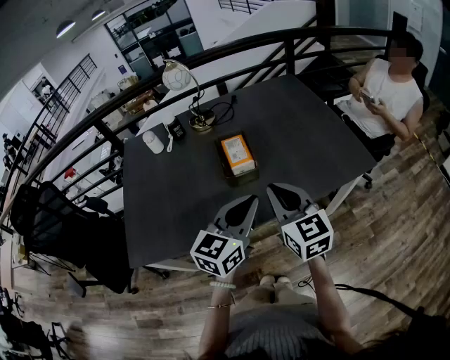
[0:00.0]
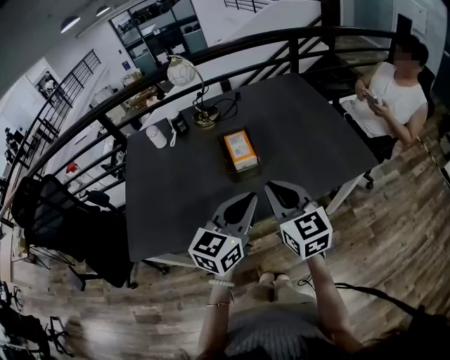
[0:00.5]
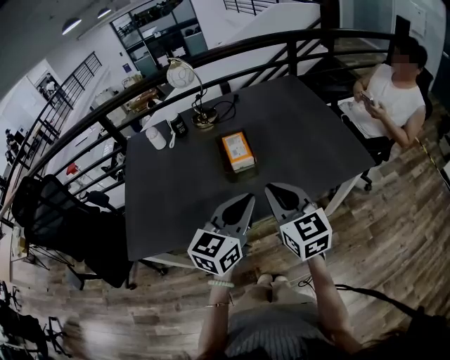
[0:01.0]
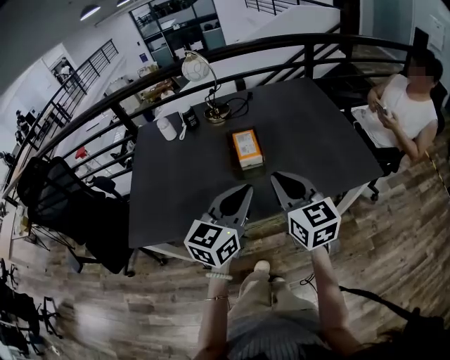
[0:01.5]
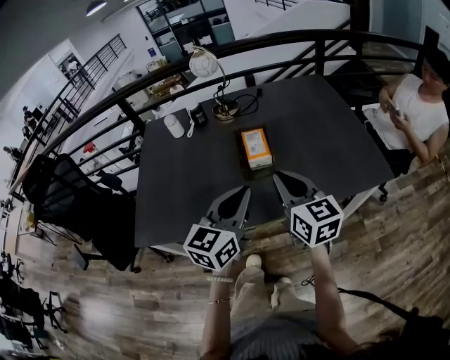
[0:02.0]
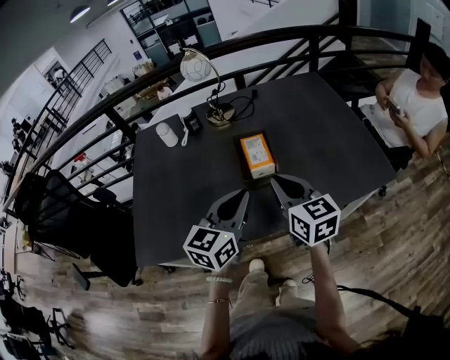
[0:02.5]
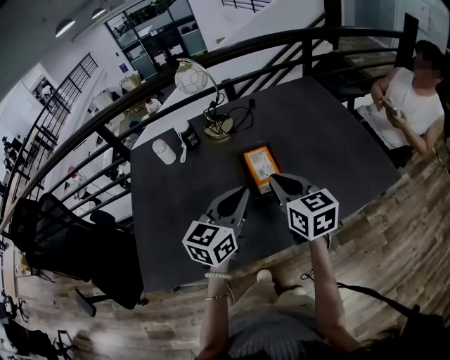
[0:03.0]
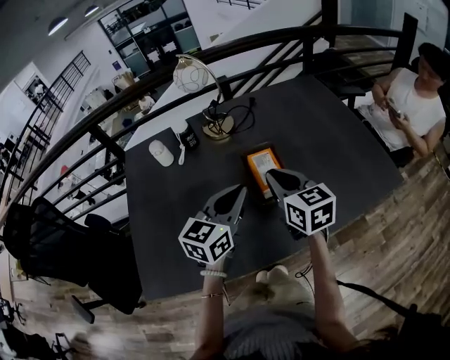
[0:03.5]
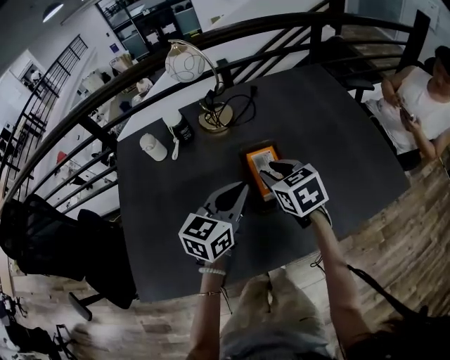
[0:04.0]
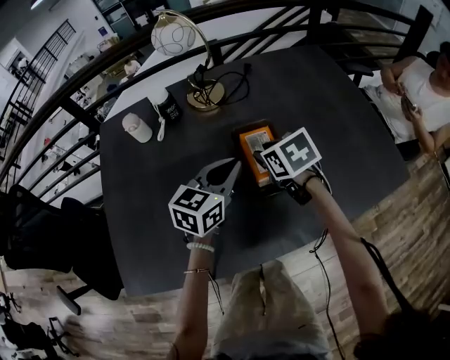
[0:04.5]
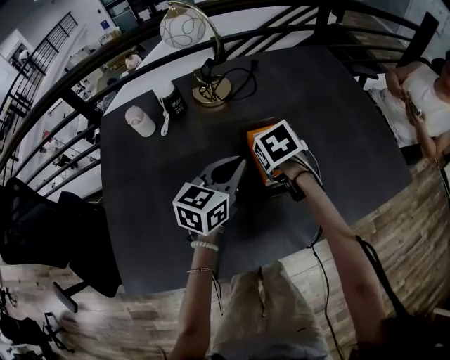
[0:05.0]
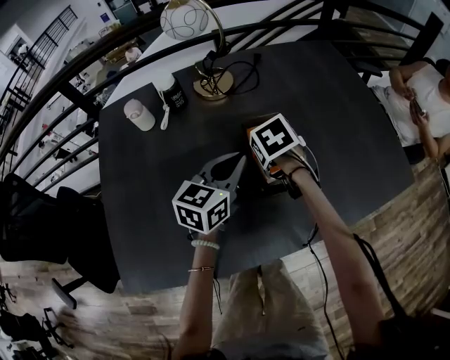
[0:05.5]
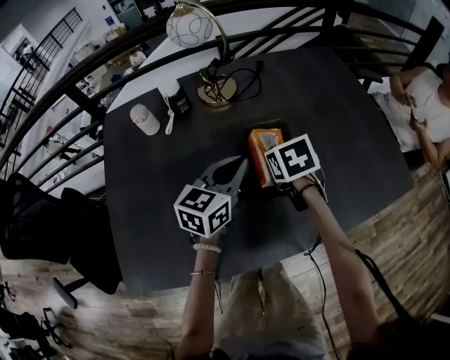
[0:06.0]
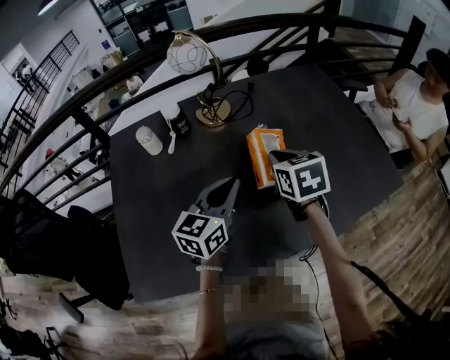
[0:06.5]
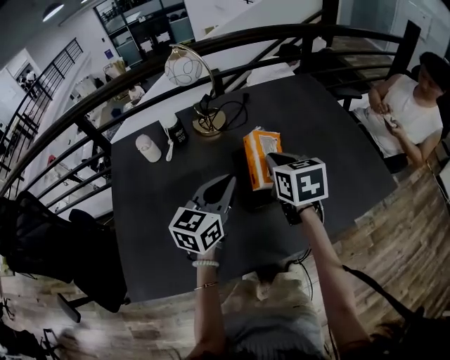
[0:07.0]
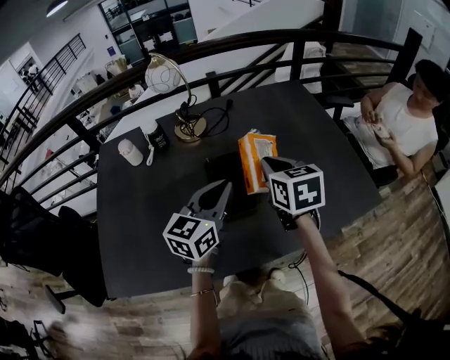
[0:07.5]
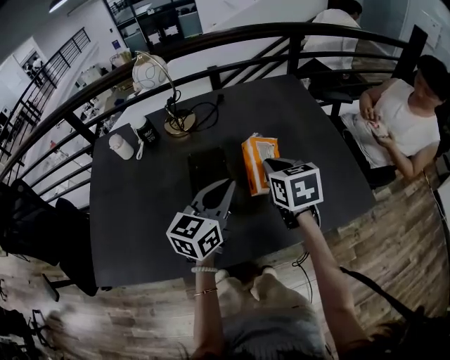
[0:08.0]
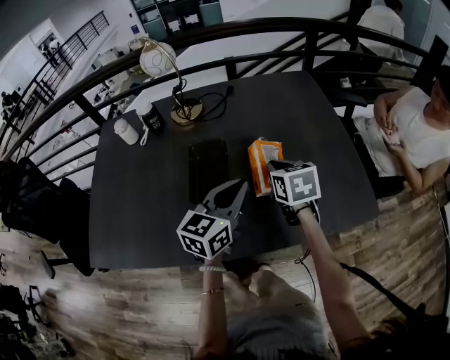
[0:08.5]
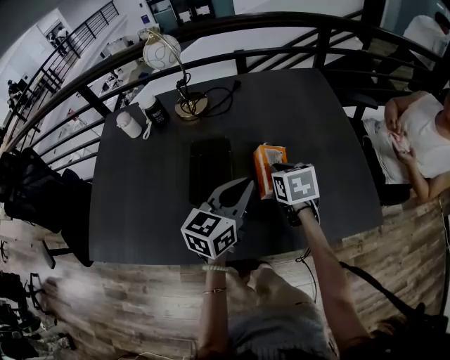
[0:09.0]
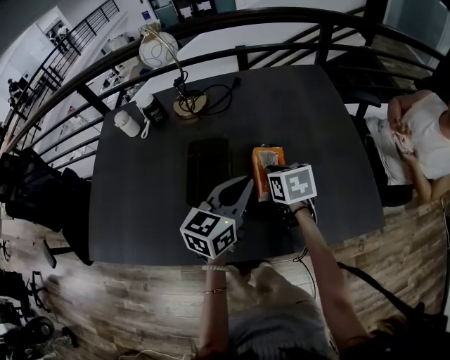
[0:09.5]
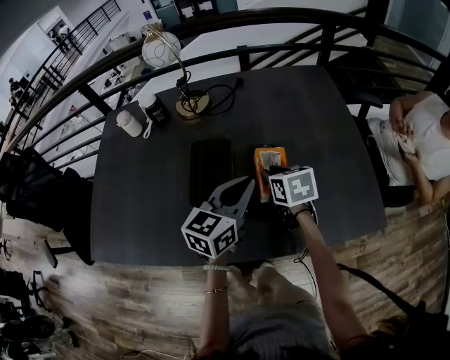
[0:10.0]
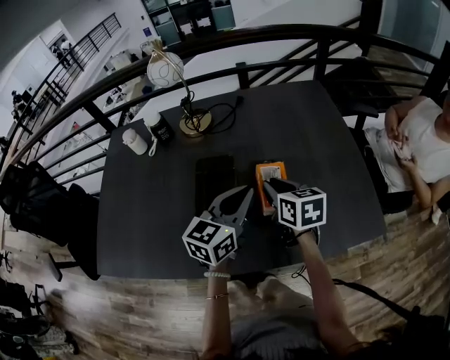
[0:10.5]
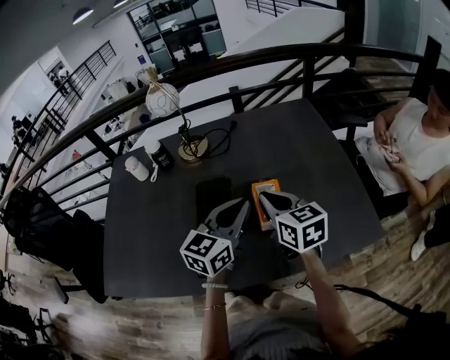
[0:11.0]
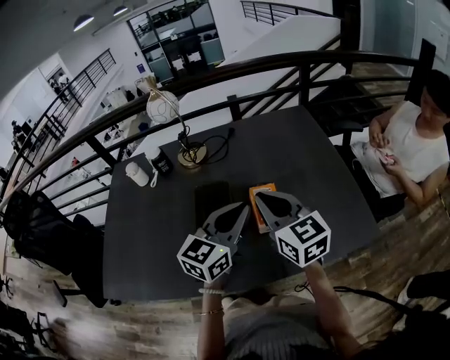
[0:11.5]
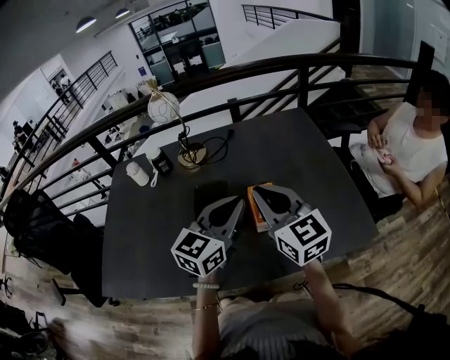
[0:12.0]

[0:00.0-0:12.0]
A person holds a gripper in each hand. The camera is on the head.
0:00.0 to 0:02.0: The left gripper changes place by some 5 cm.
0:02.0 to 0:04.0: The right gripper goes some 25 cm forward, downward and to the left, changes its angle by about 30 degrees, and opens up, while the left gripper heads forward, covering about 20 cm.
0:04.0 to 0:06.0: The right gripper travels downward by roughly 5 cm, turns by some 20 degrees, and closes its fingers. Meanwhile the left gripper moves approximately 5 cm.
0:06.0 to 0:08.0: The right gripper travels to the right and upward by about 20 cm, and changes its angle by about 20 degrees, while the left gripper moves to the right, roughly 15 cm.
0:08.0 to 0:10.0: The left gripper ends up about 5 cm from where it was. Meanwhile the right gripper shifts about 10 cm downward.
0:10.0 to 0:12.0: The left gripper moves upward, approximately 10 cm; the right gripper moves upward, roughly 20 cm, and angles its fingers upward, by about 40 degrees.

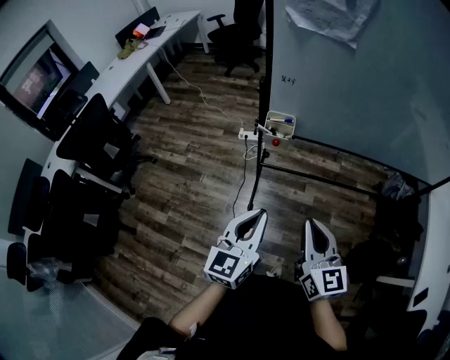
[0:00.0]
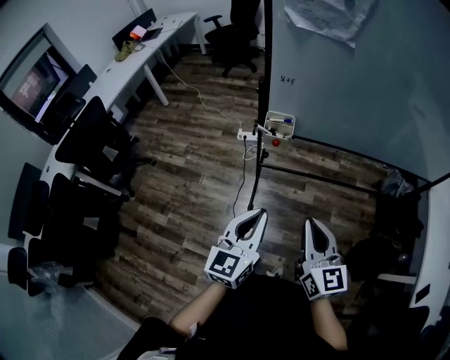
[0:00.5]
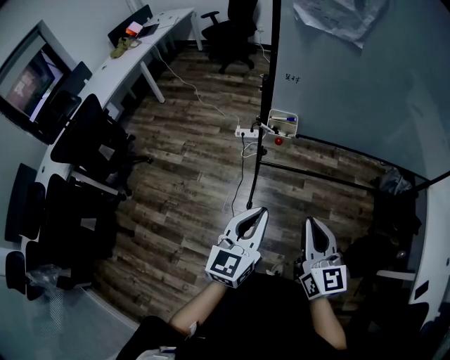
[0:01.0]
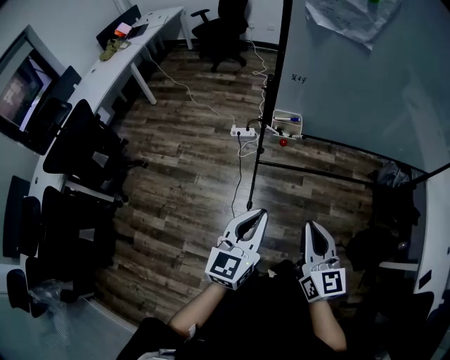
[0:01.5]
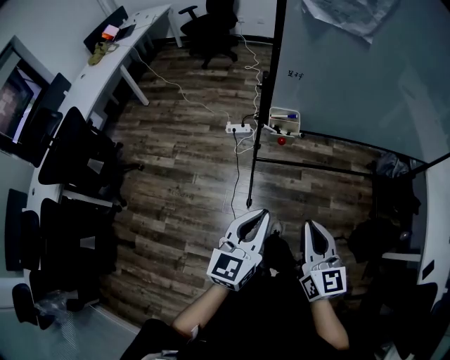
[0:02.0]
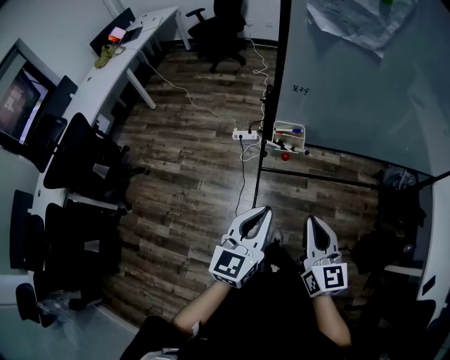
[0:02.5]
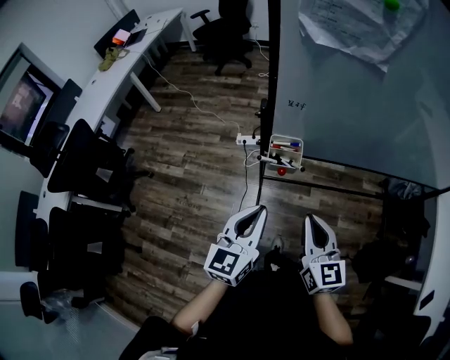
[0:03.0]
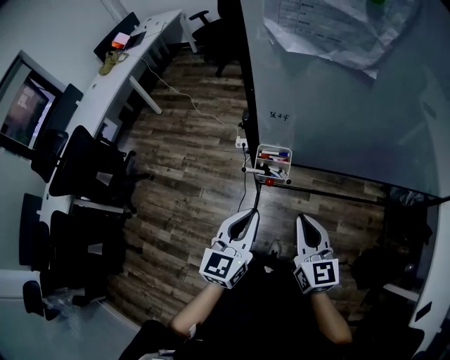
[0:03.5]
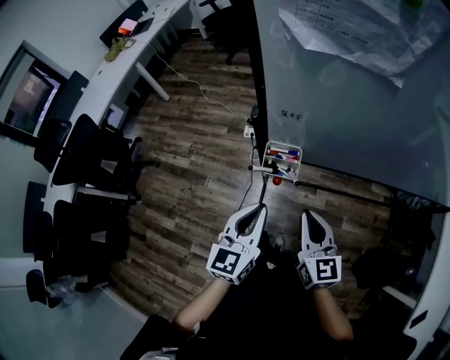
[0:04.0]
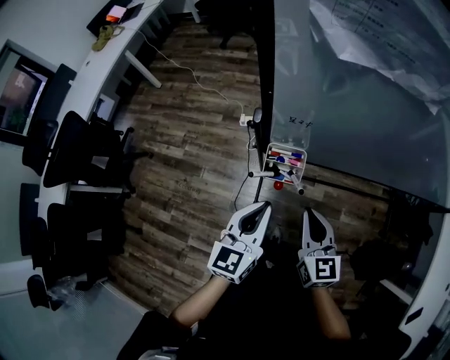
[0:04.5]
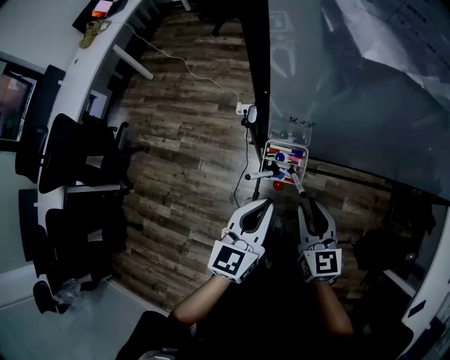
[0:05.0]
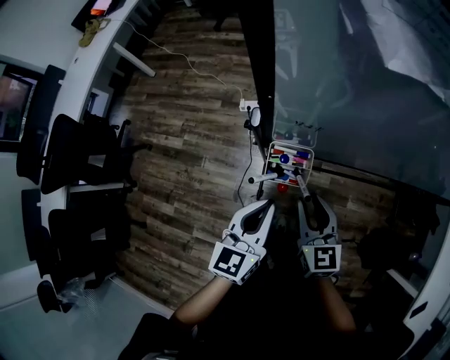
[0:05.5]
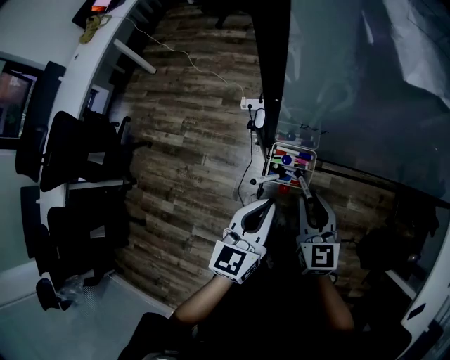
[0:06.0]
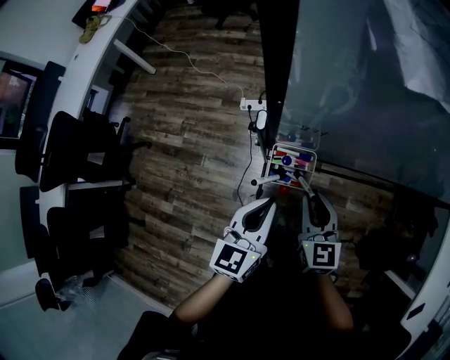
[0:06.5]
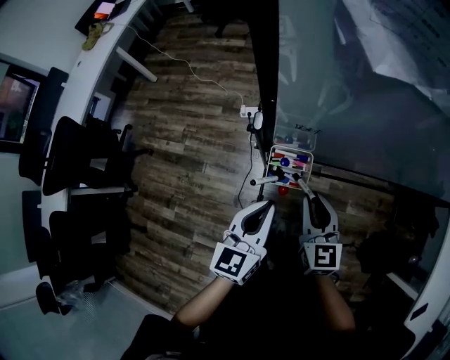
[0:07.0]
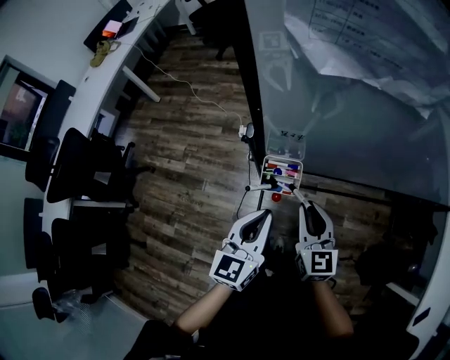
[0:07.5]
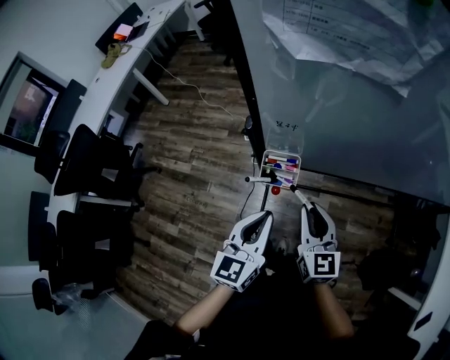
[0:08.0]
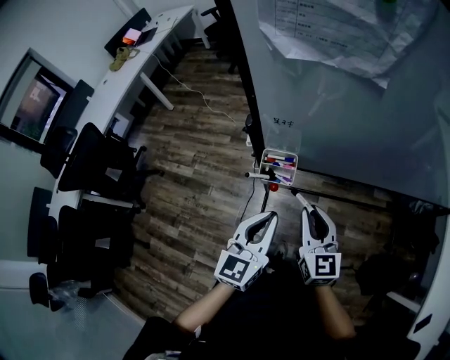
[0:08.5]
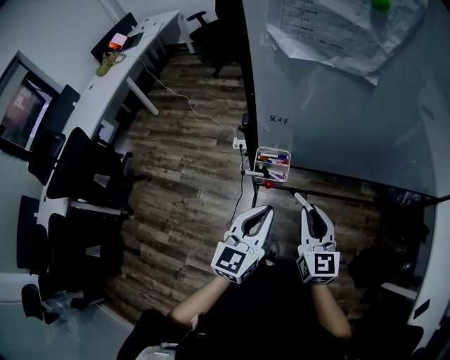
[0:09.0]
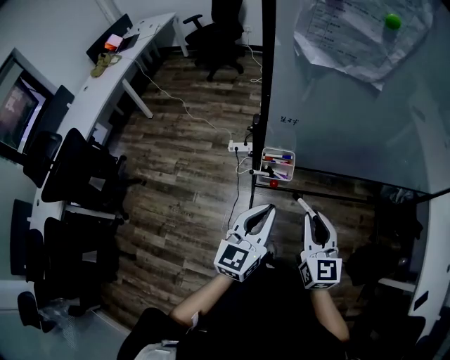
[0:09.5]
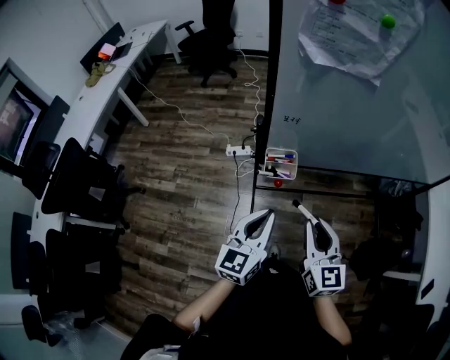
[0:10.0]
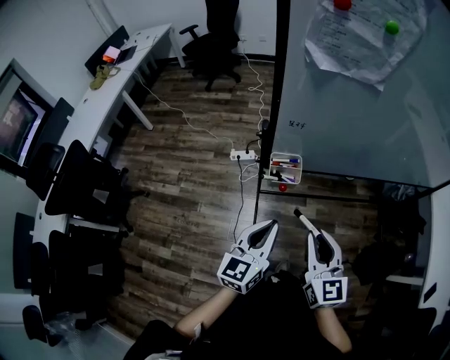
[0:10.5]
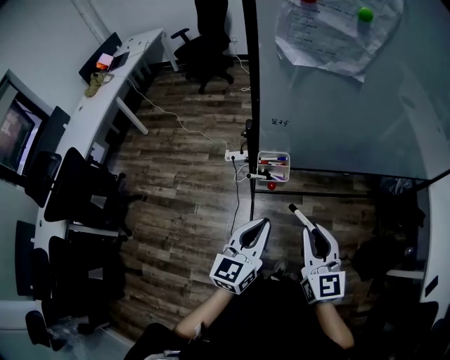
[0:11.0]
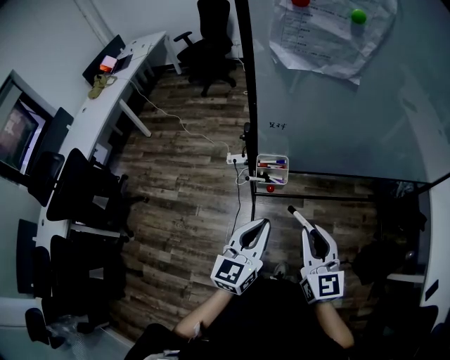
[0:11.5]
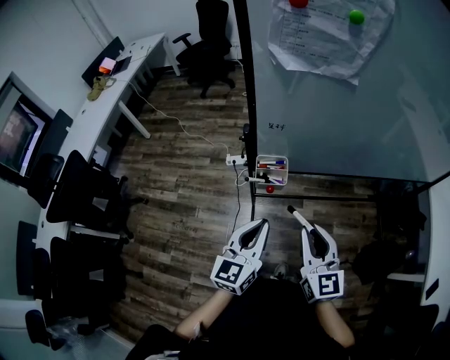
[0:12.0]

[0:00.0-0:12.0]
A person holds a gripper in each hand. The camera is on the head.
0:00.0 to 0:02.0: Both grippers move to the left, some 5 cm.
0:02.0 to 0:04.0: Both grippers travel together forward, some 20 cm.
0:04.0 to 0:06.0: The left gripper moves downward and forward, some 10 cm. The right gripper heads forward and downward, covering approximately 10 cm, and opens up.
0:06.0 to 0:08.0: The left gripper heads upward, covering roughly 5 cm. The right gripper moves about 10 cm.
0:08.0 to 0:10.0: The right gripper moves backward and upward, about 15 cm. The left gripper goes approximately 5 cm backward.
0:10.0 to 0:12.0: The grippers make only small movements.

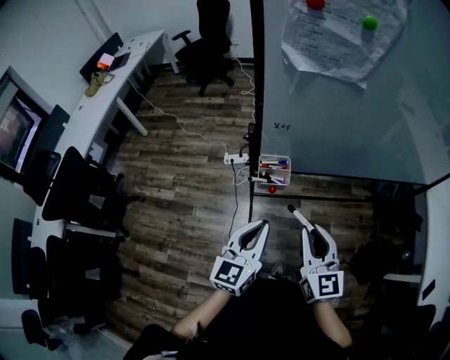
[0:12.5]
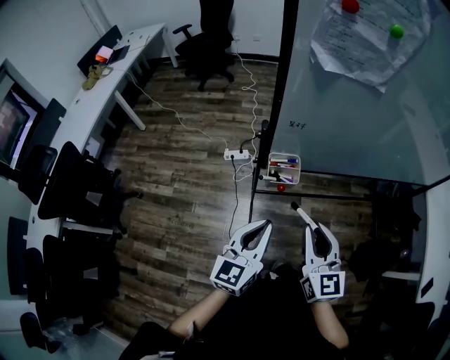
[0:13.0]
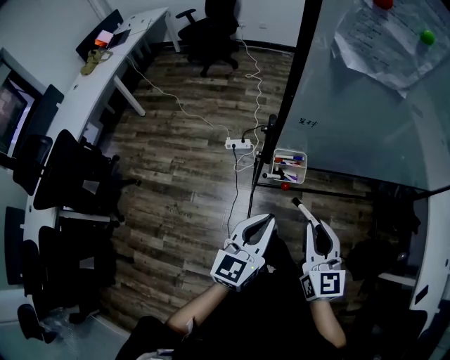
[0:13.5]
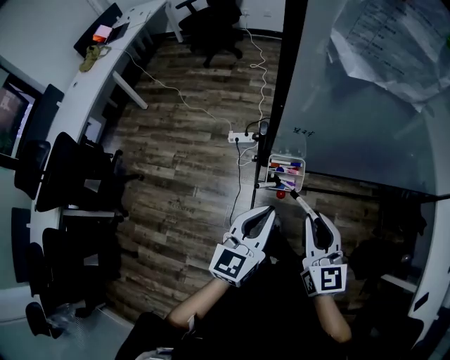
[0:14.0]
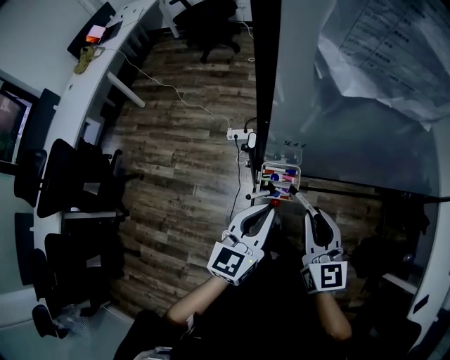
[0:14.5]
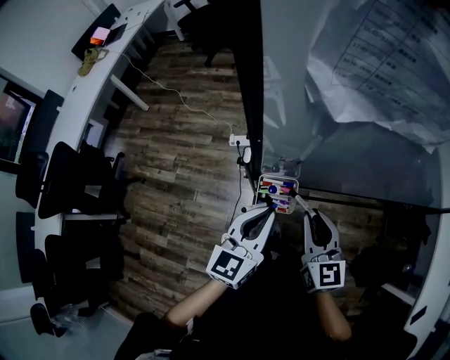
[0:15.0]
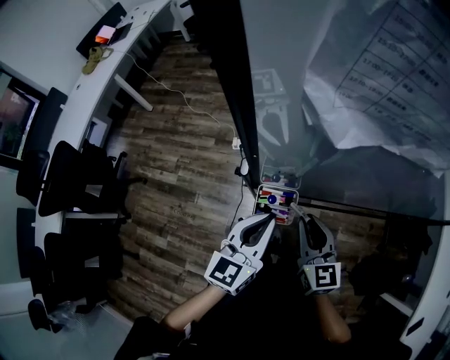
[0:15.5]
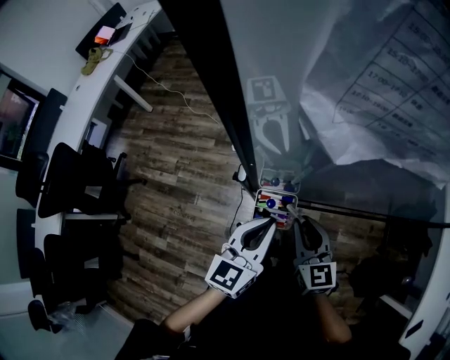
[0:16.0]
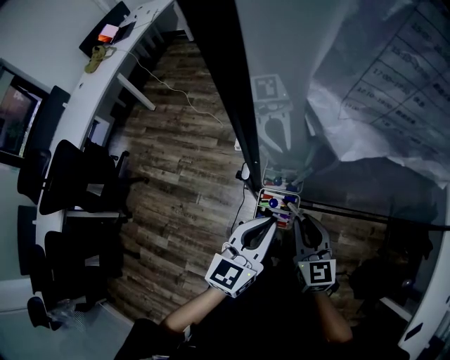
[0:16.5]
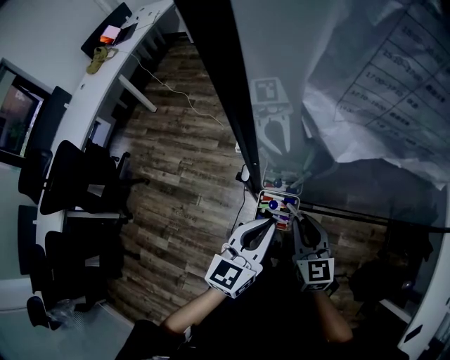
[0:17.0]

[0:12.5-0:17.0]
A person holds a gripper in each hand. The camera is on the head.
0:12.5 to 0:14.5: The two grippers go approximately 15 cm forward.
0:14.5 to 0:17.0: The left gripper changes place by approximately 5 cm. The right gripper moves downward and forward, roughly 10 cm.
